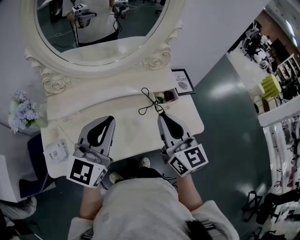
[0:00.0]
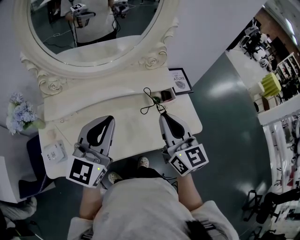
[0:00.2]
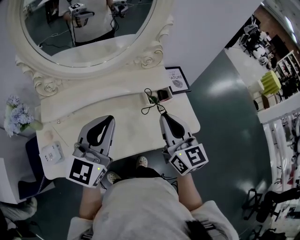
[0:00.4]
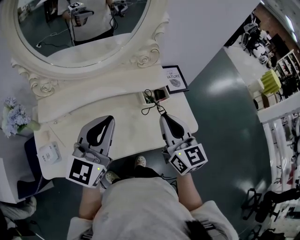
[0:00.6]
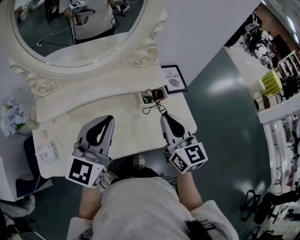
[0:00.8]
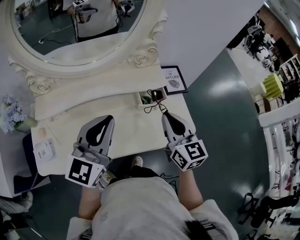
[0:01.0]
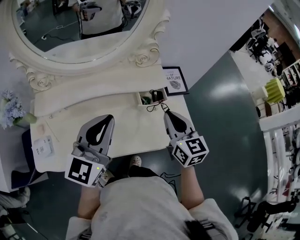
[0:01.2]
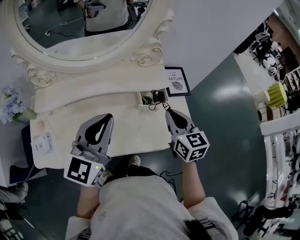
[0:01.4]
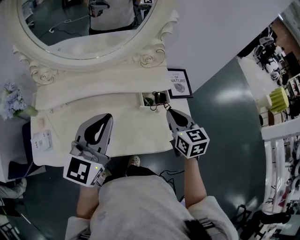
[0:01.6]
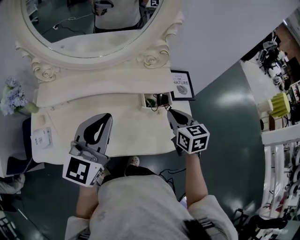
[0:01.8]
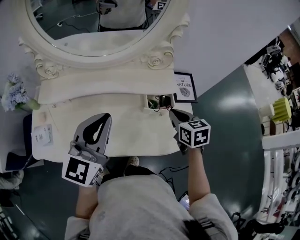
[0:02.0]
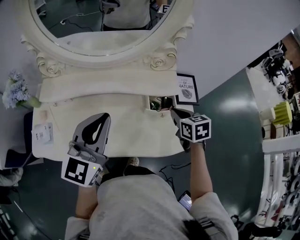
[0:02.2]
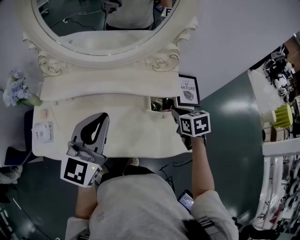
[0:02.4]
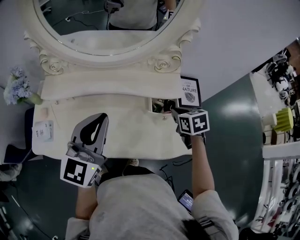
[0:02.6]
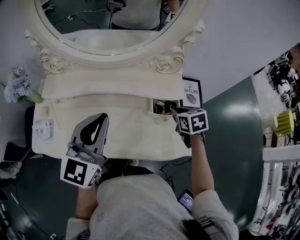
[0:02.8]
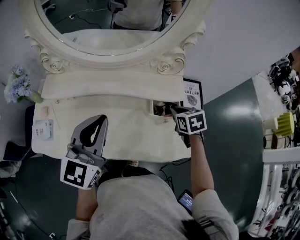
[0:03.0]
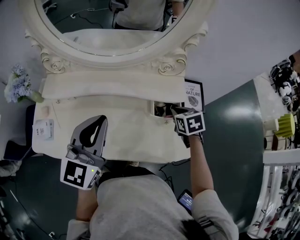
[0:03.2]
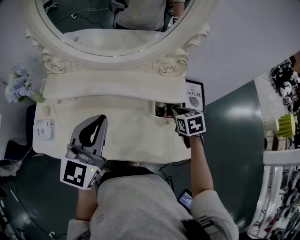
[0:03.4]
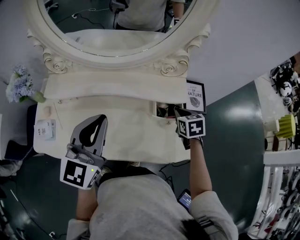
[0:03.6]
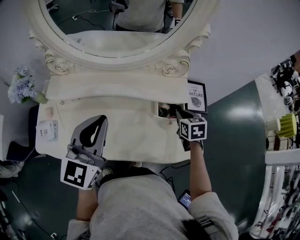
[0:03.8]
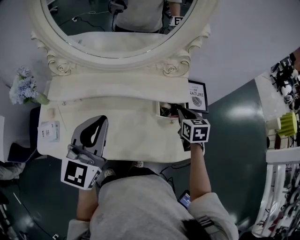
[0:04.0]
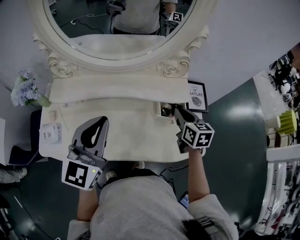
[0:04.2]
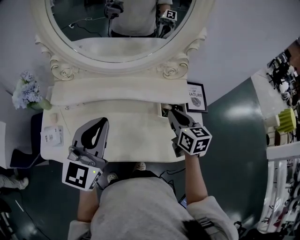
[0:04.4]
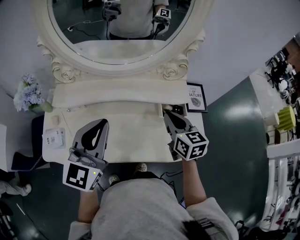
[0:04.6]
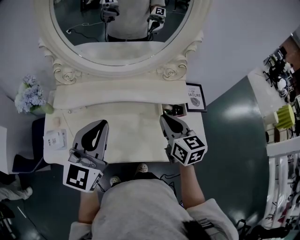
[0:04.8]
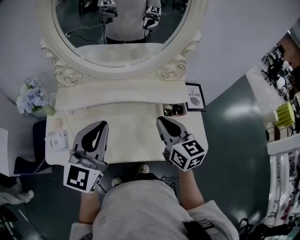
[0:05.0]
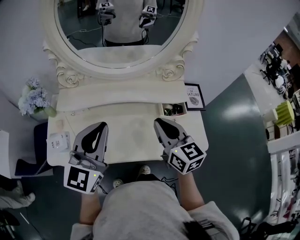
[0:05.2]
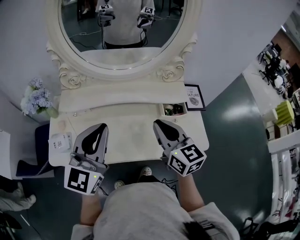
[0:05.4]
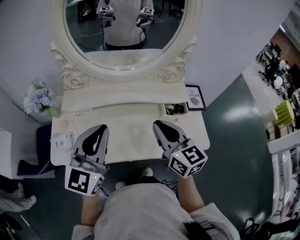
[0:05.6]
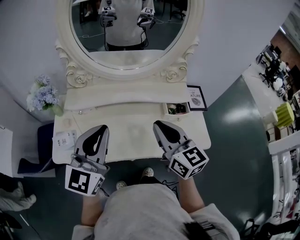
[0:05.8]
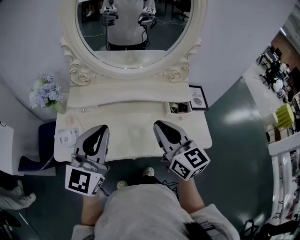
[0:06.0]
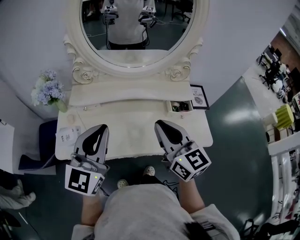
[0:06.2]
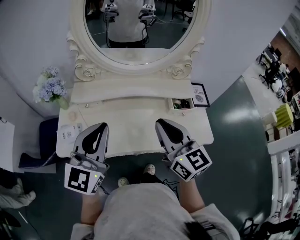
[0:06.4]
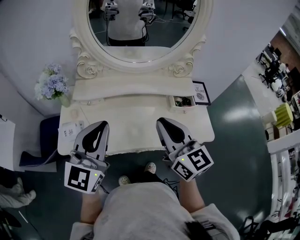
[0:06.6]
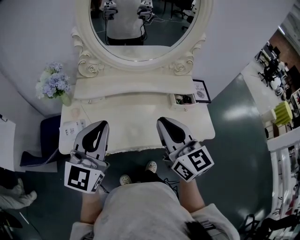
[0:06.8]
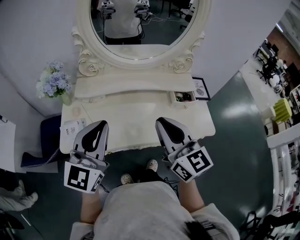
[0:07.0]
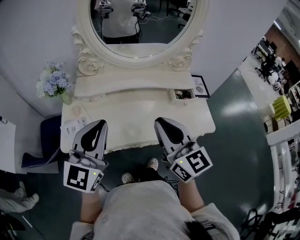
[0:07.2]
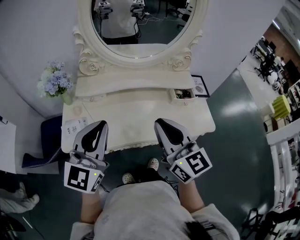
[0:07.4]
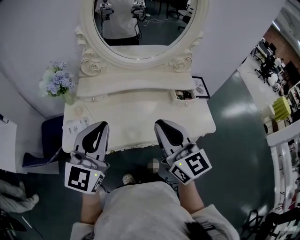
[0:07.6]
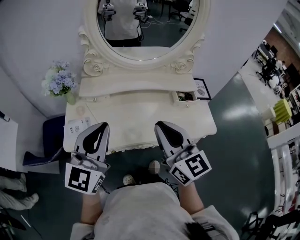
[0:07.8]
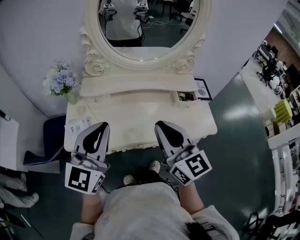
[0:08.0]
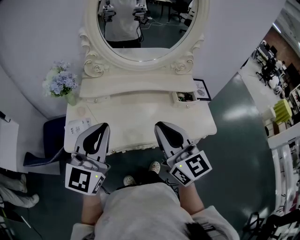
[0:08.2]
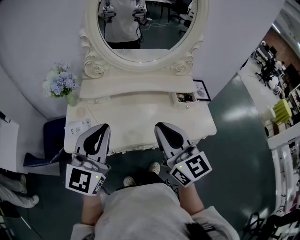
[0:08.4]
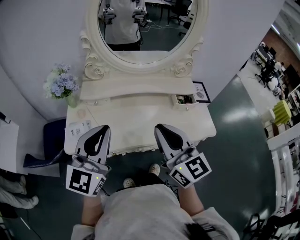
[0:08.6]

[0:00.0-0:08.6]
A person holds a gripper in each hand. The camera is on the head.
0:00.0 to 0:01.4: The left gripper travels to the right by about 10 cm, while the right gripper moves to the right, downward and forward, roughly 20 cm.
0:01.4 to 0:02.8: The right gripper travels downward and forward by approximately 15 cm, and points its fingers roughly 30 degrees further downward.
0:02.8 to 0:04.4: The right gripper travels upward and to the left by about 10 cm, and turns by roughly 30 degrees.
0:04.4 to 0:05.8: The right gripper heads to the left, upward and backward, covering about 20 cm, and swivels some 20 degrees; the left gripper heads backward and to the left, covering about 10 cm.
0:05.8 to 0:07.2: The right gripper travels backward and to the left by about 10 cm. The left gripper shifts roughly 10 cm to the left and backward.
0:07.2 to 0:08.6: The grippers move only a little.

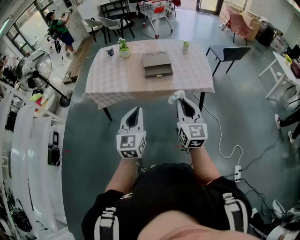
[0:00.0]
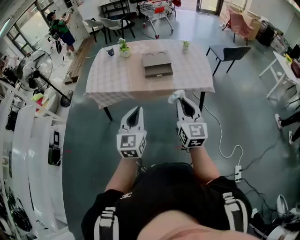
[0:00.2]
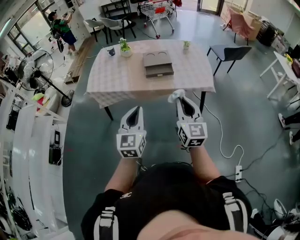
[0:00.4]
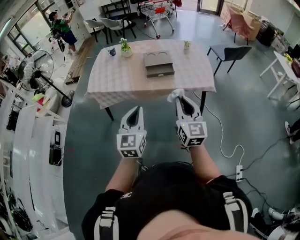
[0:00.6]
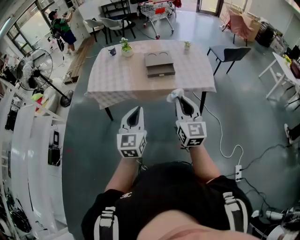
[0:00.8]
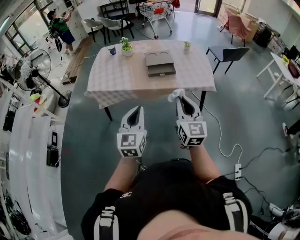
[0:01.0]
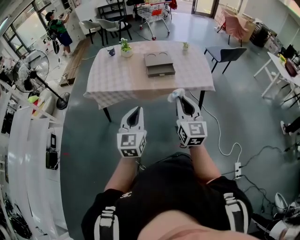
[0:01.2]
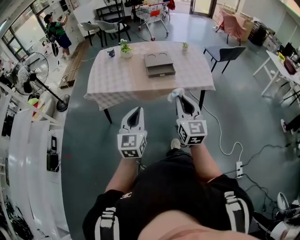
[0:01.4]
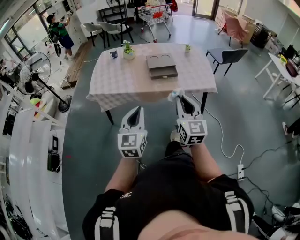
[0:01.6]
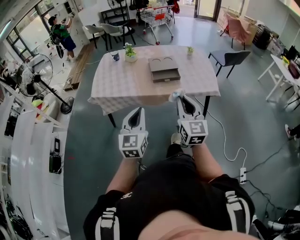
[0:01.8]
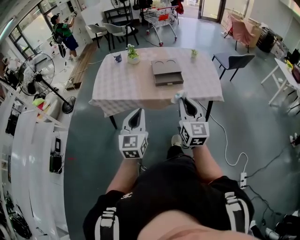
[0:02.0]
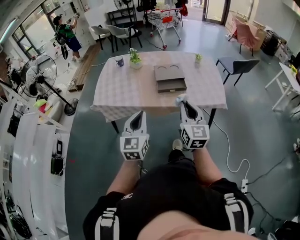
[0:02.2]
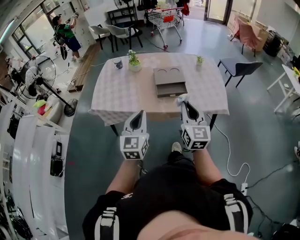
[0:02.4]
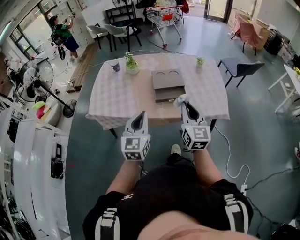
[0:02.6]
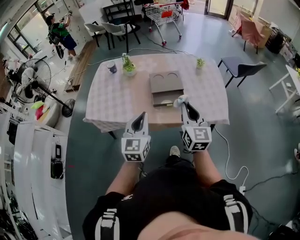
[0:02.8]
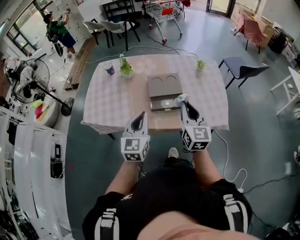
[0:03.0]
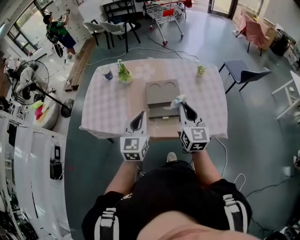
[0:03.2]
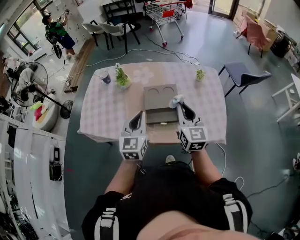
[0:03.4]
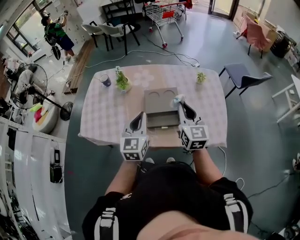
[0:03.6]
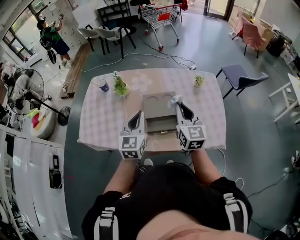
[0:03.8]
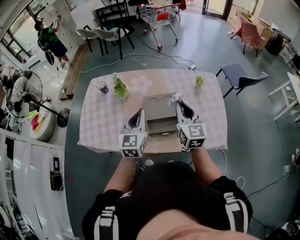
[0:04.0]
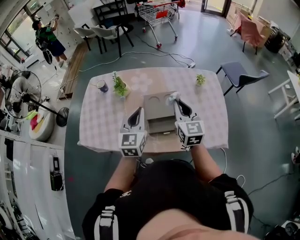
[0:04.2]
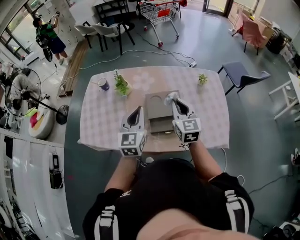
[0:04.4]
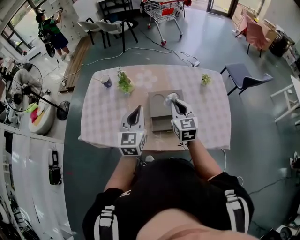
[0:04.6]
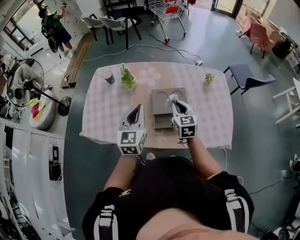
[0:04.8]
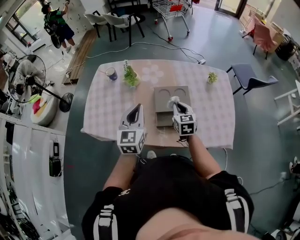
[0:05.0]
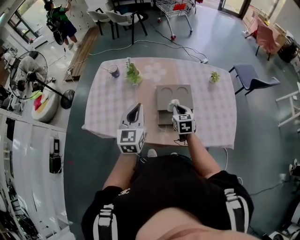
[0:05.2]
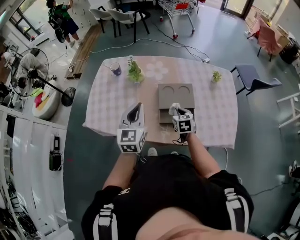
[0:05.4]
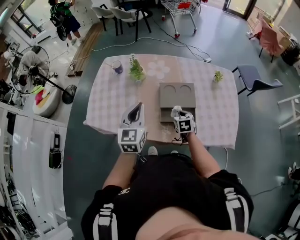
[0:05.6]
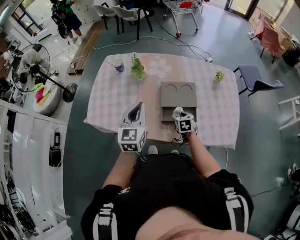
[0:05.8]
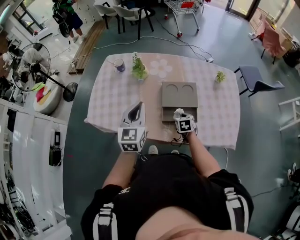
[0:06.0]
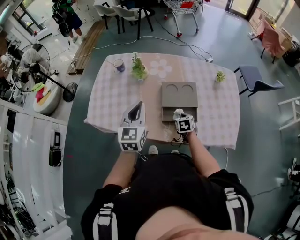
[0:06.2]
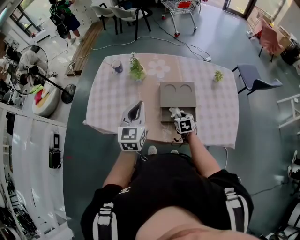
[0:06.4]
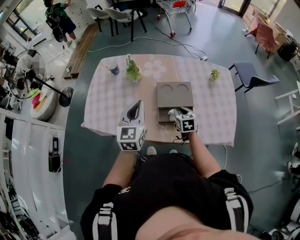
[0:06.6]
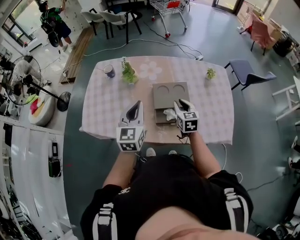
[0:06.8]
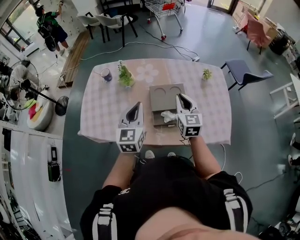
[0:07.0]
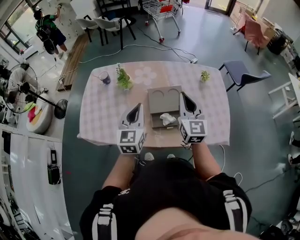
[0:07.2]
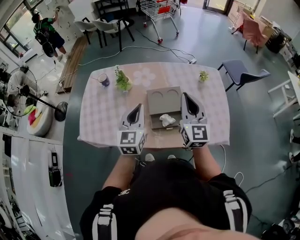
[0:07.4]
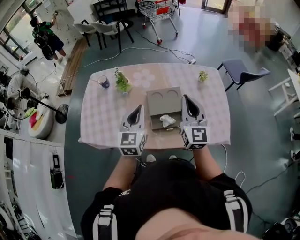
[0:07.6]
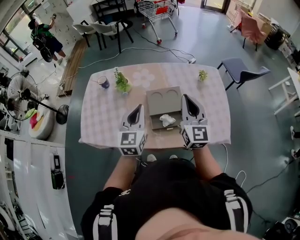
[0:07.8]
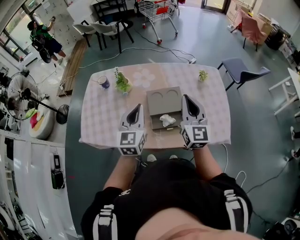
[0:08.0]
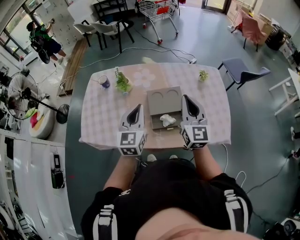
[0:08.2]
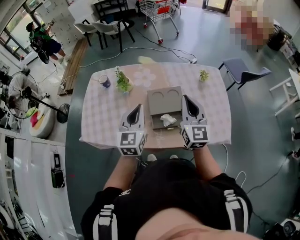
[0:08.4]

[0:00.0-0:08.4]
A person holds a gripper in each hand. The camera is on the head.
0:00.0 to 0:01.4: The grippers both shift to the left by approximately 5 cm.
0:01.4 to 0:02.8: Both grippers move forward, roughly 35 cm.
0:02.8 to 0:04.2: The two grippers go about 30 cm forward.
0:04.2 to 0:05.6: The right gripper shifts approximately 25 cm downward, and tilts its fingers about 40 degrees downward. Meanwhile the left gripper shifts some 10 cm to the left.
0:05.6 to 0:07.0: The right gripper shifts some 20 cm upward, and points its fingers about 30 degrees further upward.
0:07.0 to 0:08.4: The right gripper goes approximately 10 cm upward.

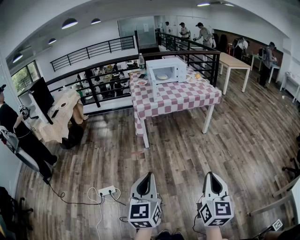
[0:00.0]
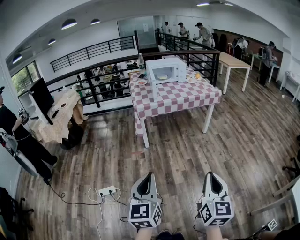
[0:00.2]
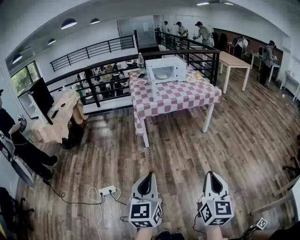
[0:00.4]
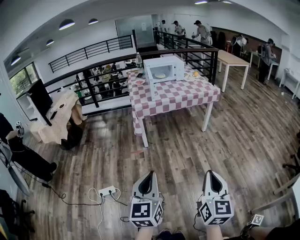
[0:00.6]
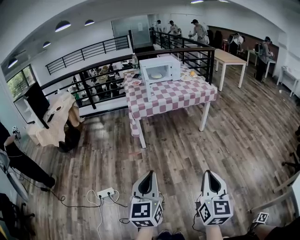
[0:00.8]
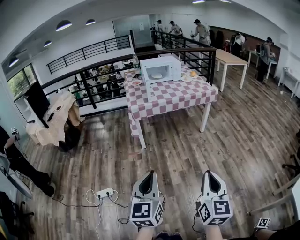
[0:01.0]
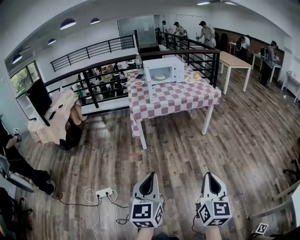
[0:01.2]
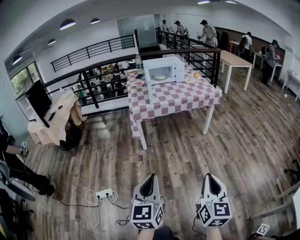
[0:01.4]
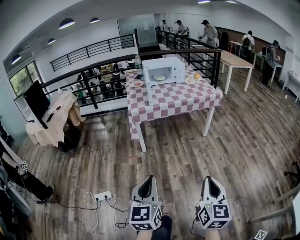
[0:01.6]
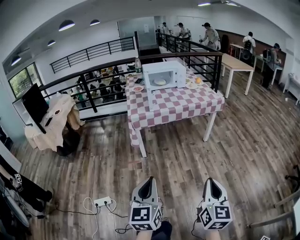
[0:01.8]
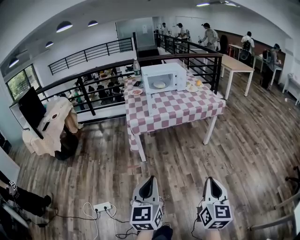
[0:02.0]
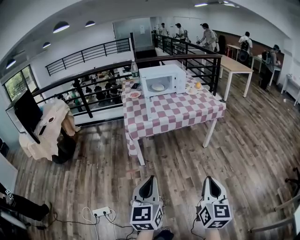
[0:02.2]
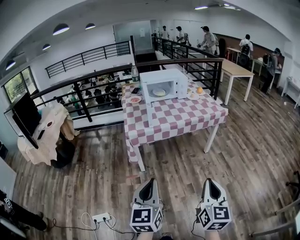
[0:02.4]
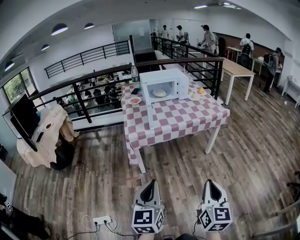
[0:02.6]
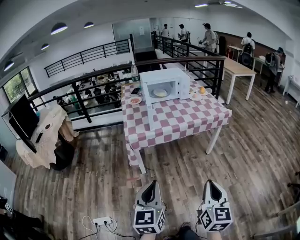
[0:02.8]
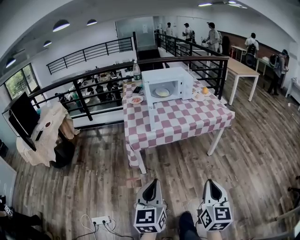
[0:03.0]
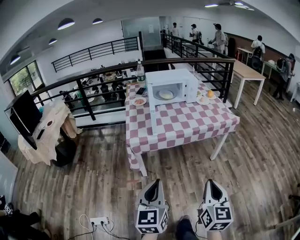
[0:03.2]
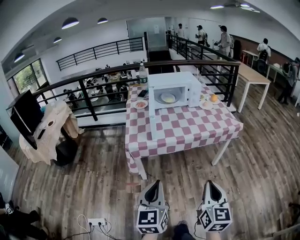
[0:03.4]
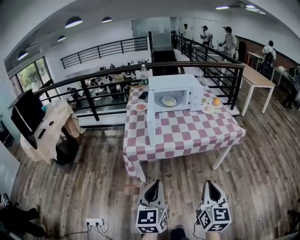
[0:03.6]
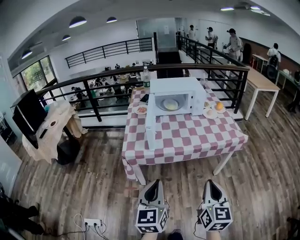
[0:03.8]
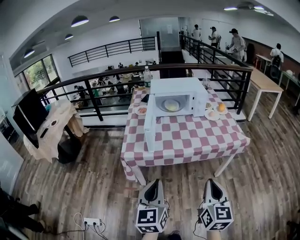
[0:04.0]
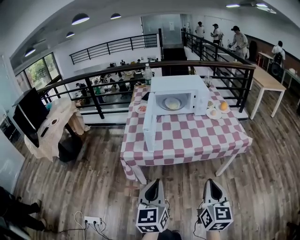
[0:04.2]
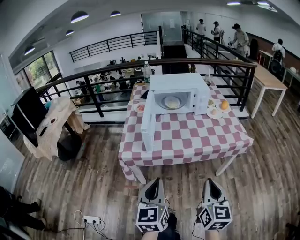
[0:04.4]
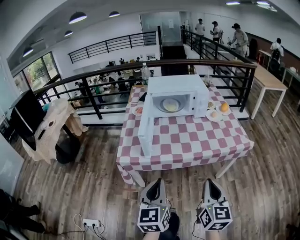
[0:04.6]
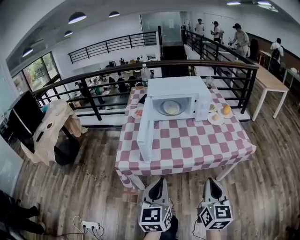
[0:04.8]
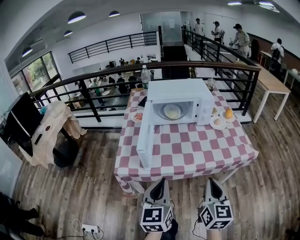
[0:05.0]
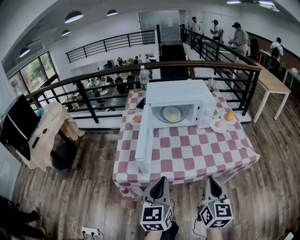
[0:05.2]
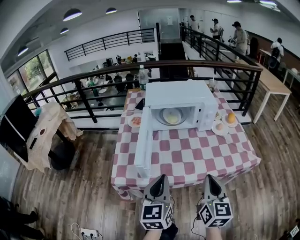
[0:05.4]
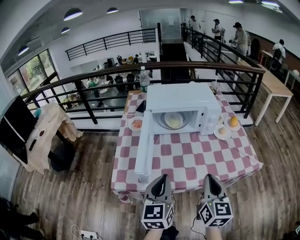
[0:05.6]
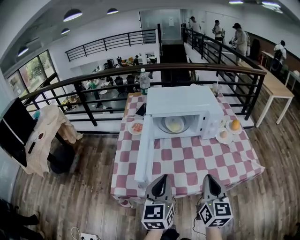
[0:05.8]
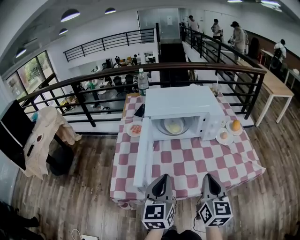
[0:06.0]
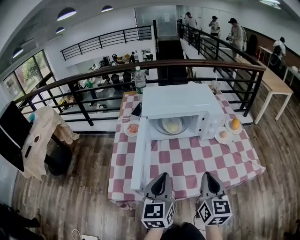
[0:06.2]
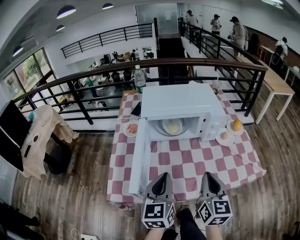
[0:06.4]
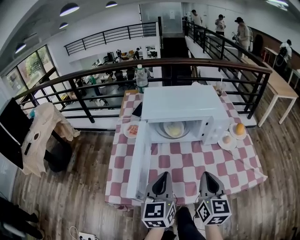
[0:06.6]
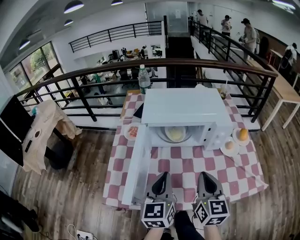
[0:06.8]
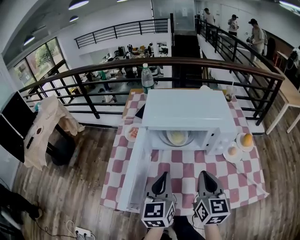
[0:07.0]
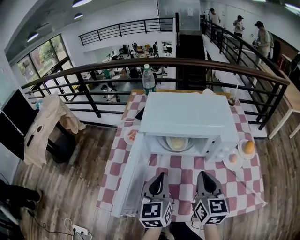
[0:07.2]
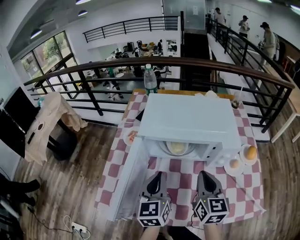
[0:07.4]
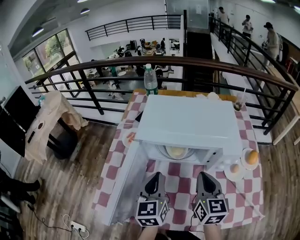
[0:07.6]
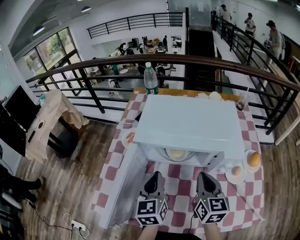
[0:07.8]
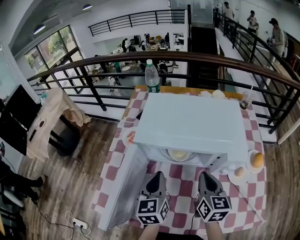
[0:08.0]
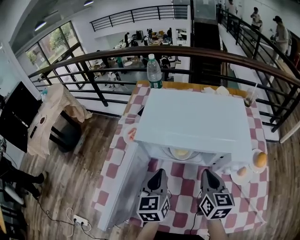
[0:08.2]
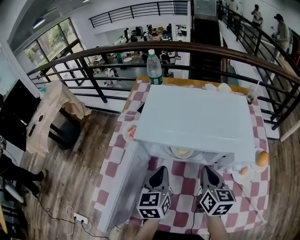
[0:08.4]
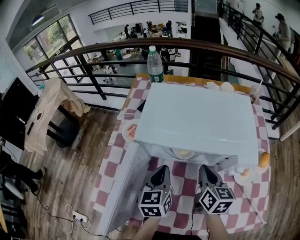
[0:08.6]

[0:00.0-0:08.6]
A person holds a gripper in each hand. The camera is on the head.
0:00.0 to 0:01.4: The left gripper travels forward and to the right by approximately 10 cm. The right gripper shifts roughly 5 cm forward.
0:01.4 to 0:02.8: Both grippers travel together forward, roughly 25 cm.
0:02.8 to 0:04.4: The right gripper is displaced forward by about 30 cm, while the left gripper is displaced forward and to the right by roughly 25 cm.
0:04.4 to 0:05.8: Both grippers travel together forward, approximately 25 cm.
0:05.8 to 0:07.2: Both grippers move forward, some 20 cm.
0:07.2 to 0:08.6: The two grippers go some 15 cm forward and downward.
